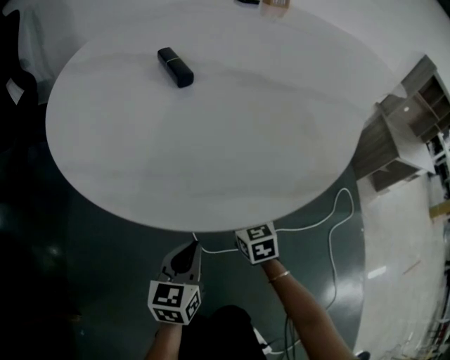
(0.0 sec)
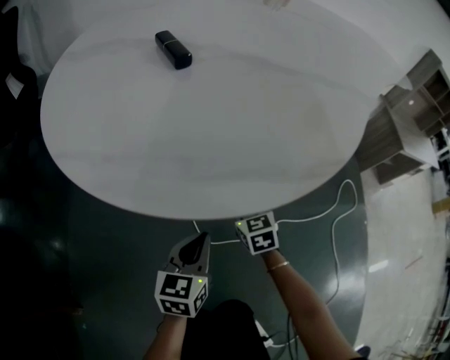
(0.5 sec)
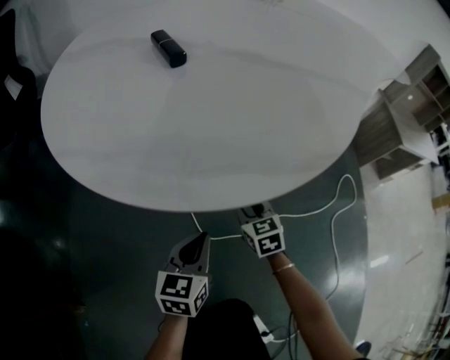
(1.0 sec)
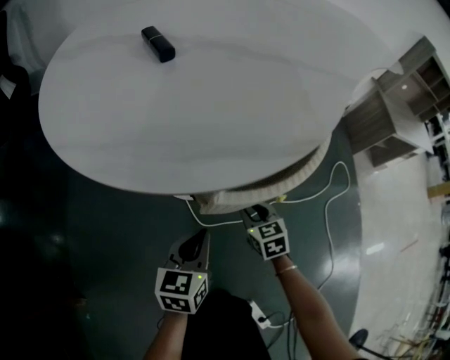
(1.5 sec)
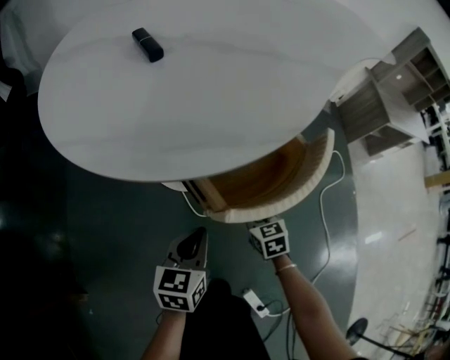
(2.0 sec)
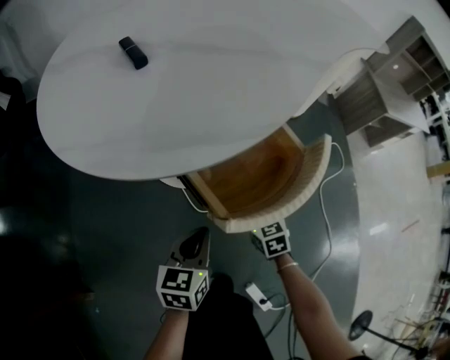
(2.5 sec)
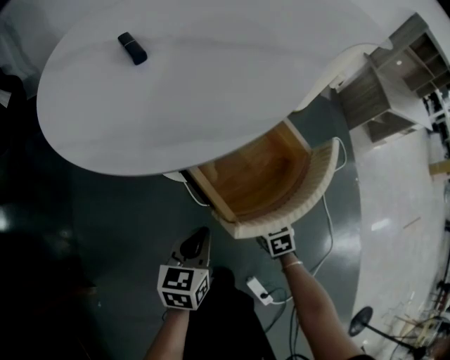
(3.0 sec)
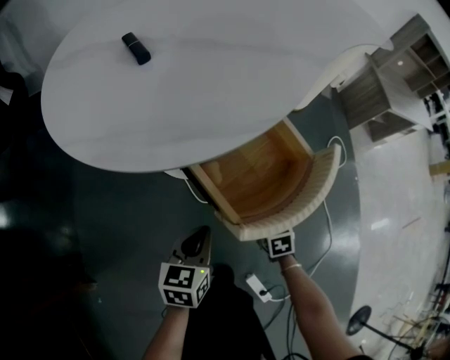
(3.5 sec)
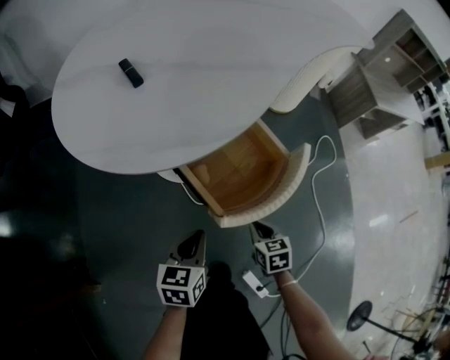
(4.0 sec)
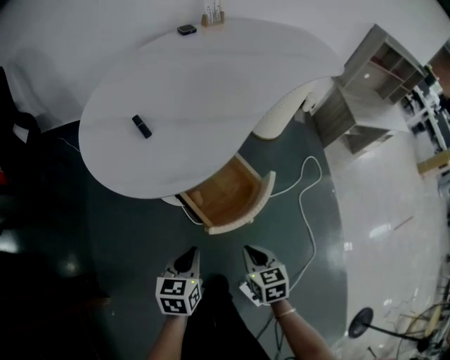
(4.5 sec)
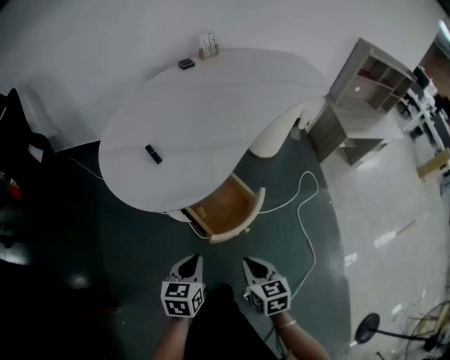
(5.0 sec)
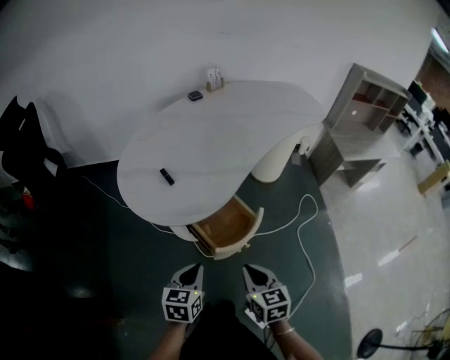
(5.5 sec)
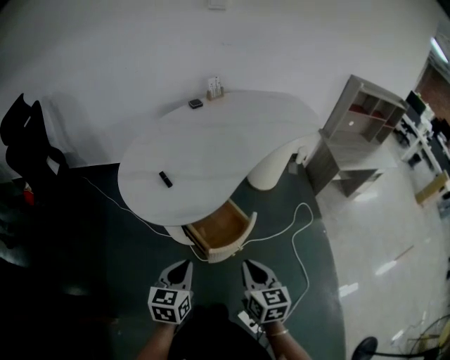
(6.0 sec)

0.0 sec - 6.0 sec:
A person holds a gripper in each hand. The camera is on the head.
0.0 sec - 2.0 sec: The right gripper shifts about 15 cm backward and to the right; the left gripper shifts approximately 5 cm backward.
2.0 sec - 4.0 sec: The right gripper travels backward, upward and to the right by roughly 15 cm, and closes. Meanwhile the left gripper shifts approximately 5 cm backward and upward.
4.0 sec - 6.0 sec: Both grippers travel together upward, about 35 cm. The right gripper swivels some 30 degrees.

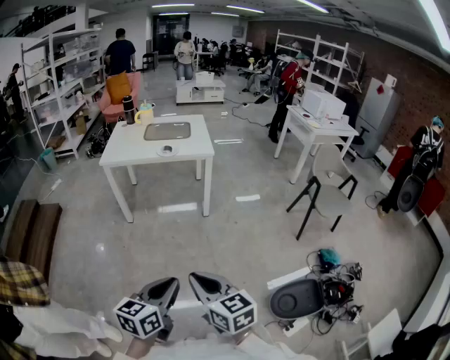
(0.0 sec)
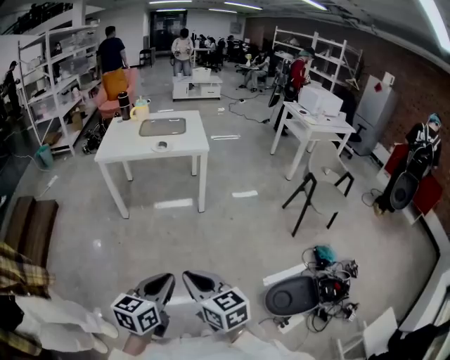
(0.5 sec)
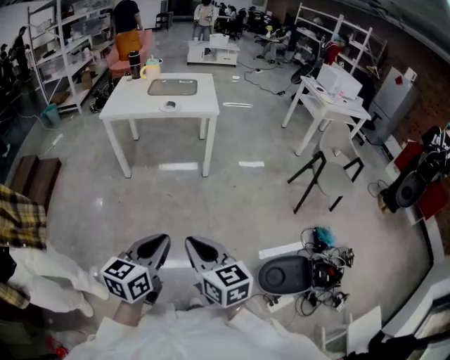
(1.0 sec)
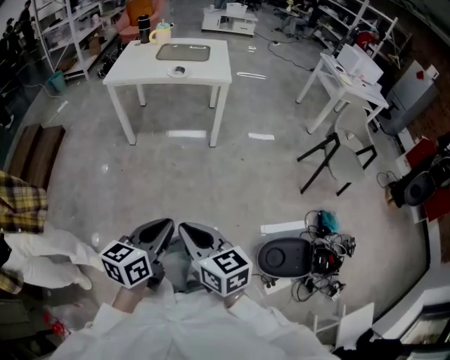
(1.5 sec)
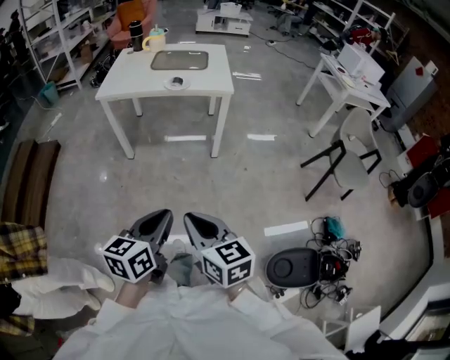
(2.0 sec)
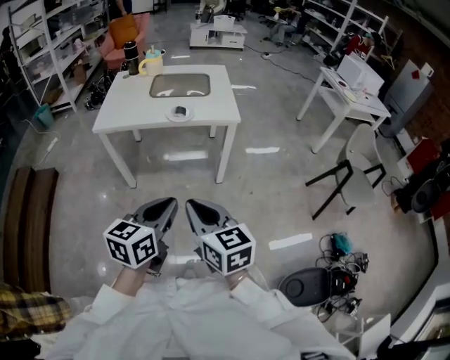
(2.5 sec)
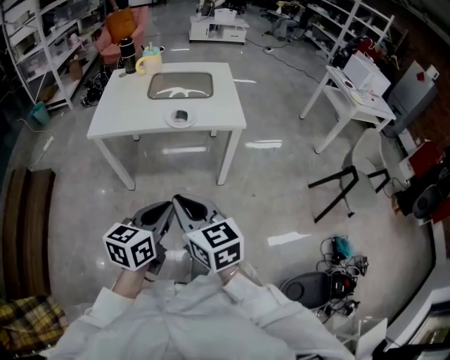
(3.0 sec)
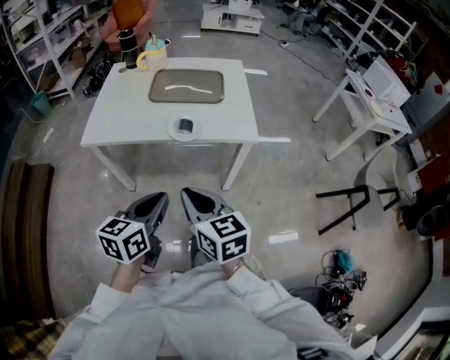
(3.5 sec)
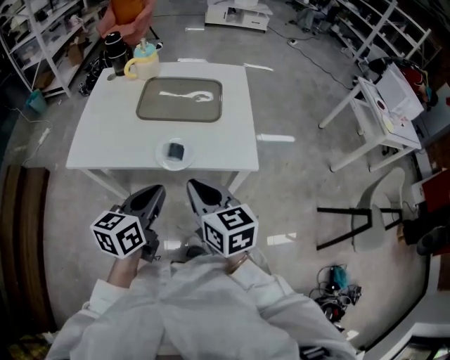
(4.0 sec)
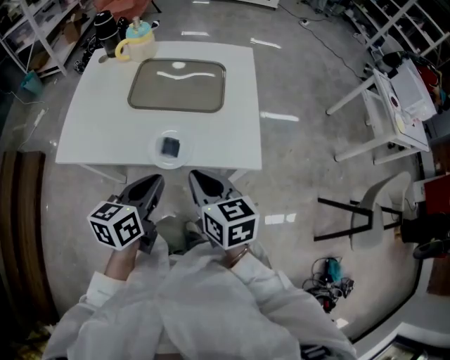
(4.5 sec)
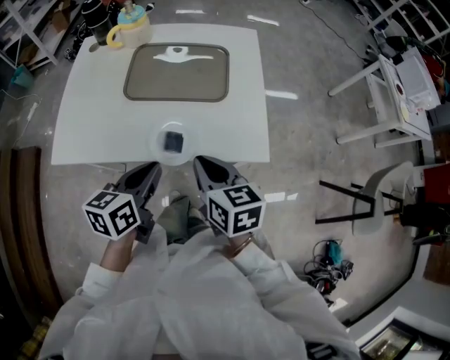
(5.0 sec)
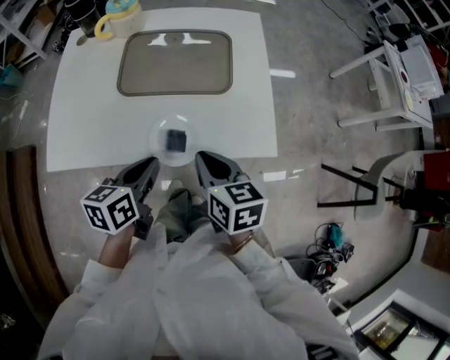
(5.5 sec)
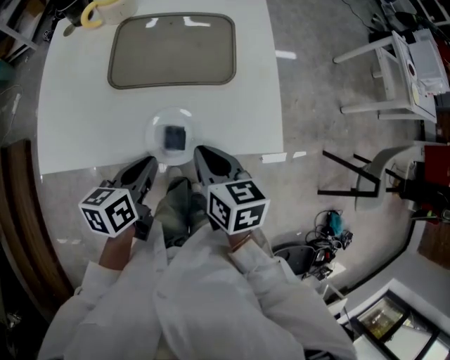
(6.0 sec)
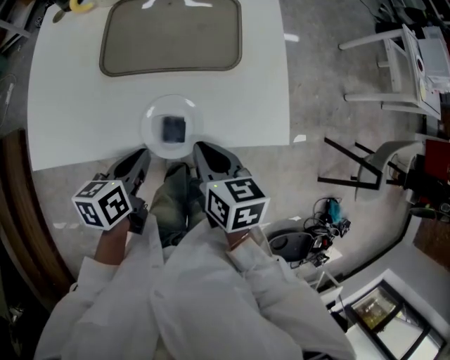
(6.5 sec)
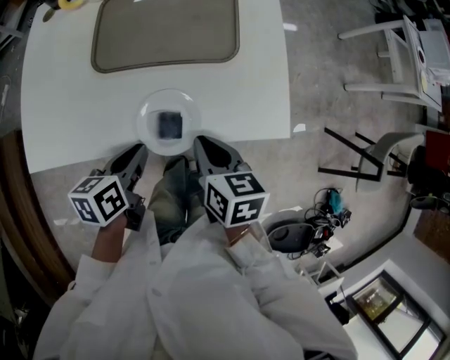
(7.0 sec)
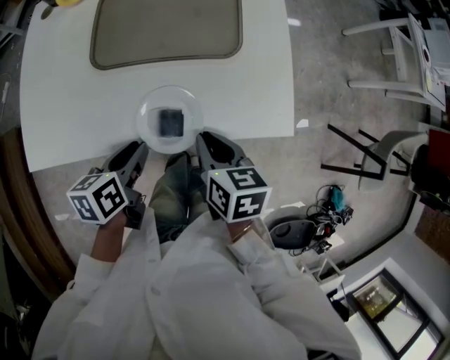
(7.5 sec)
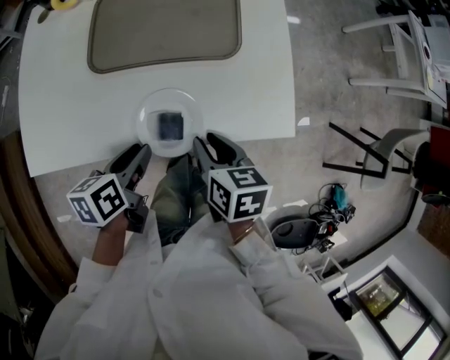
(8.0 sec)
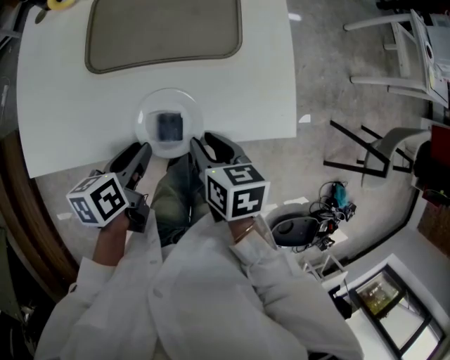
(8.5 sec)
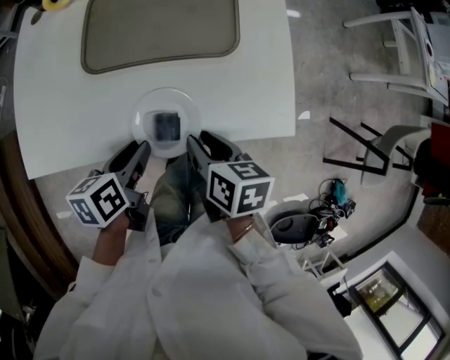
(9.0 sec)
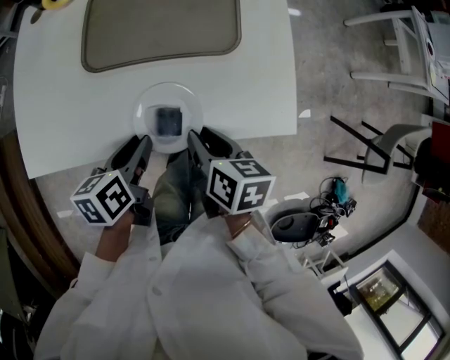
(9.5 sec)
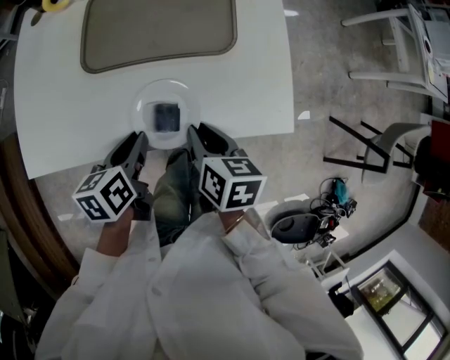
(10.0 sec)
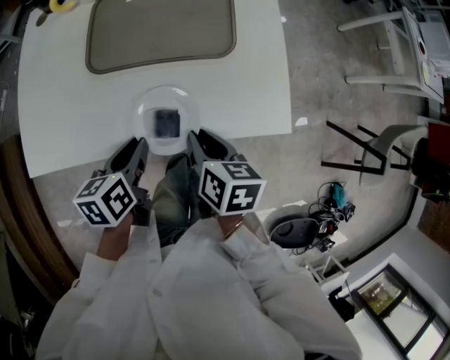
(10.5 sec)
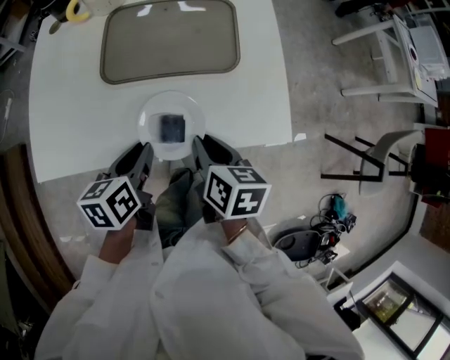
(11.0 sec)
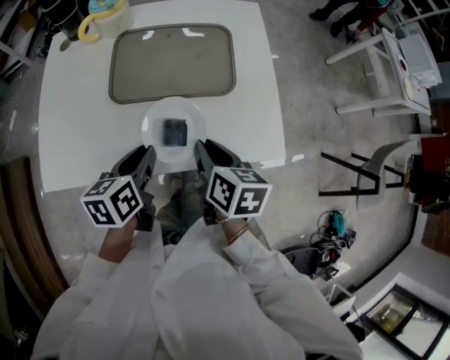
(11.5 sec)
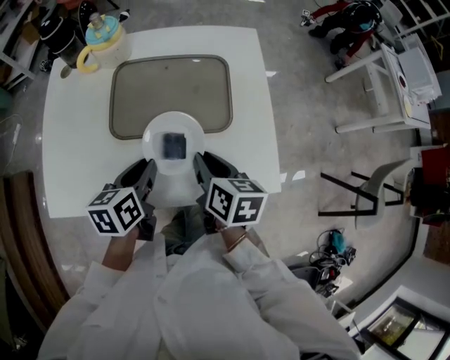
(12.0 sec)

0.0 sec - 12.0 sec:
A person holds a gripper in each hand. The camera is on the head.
0.0 sec - 2.0 sec: The grippers both shift forward by roughly 15 cm.
2.0 sec - 4.0 sec: Both grippers are carried forward, approximately 60 cm.
4.0 sec - 6.0 sec: Both grippers travel together forward and downward, about 20 cm. The left gripper changes its angle by about 20 degrees; the right gripper turns by some 20 degrees.
6.0 sec - 8.0 sec: Both grippers move downward, some 5 cm. The left gripper opens its fingers.
8.0 sec - 10.0 sec: The grippers make only small movements.
10.0 sec - 12.0 sec: The two grippers go some 10 cm forward and upward.

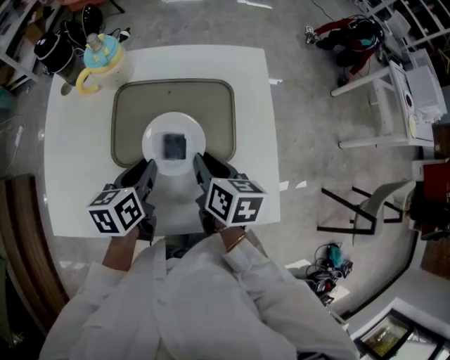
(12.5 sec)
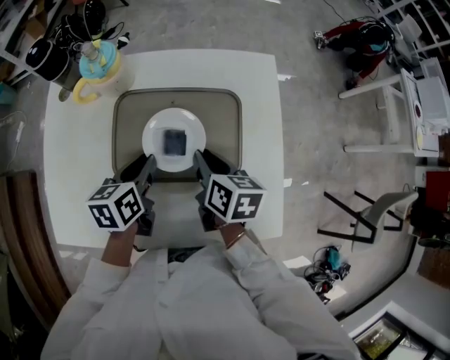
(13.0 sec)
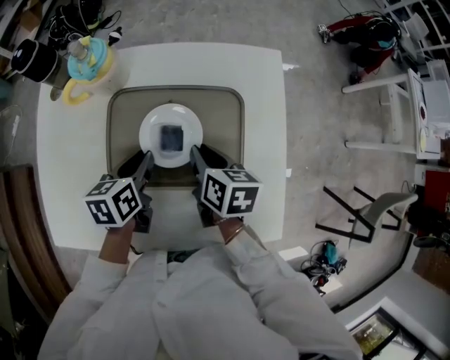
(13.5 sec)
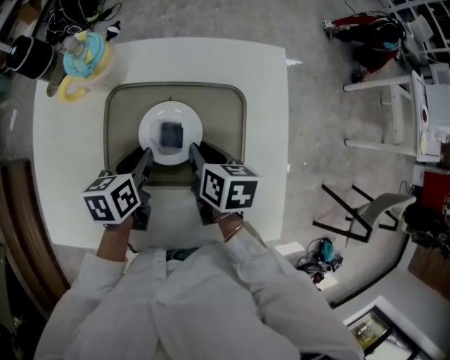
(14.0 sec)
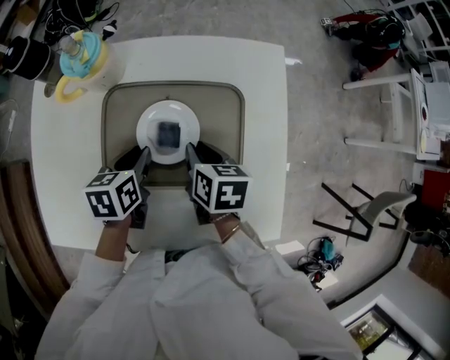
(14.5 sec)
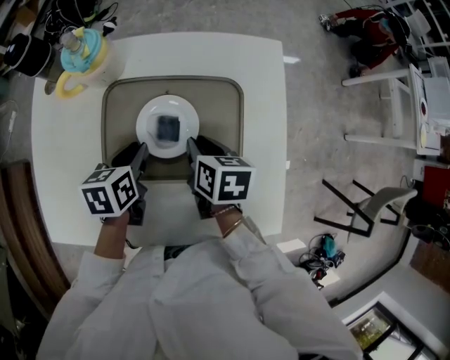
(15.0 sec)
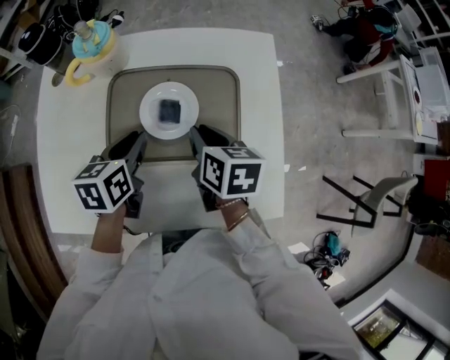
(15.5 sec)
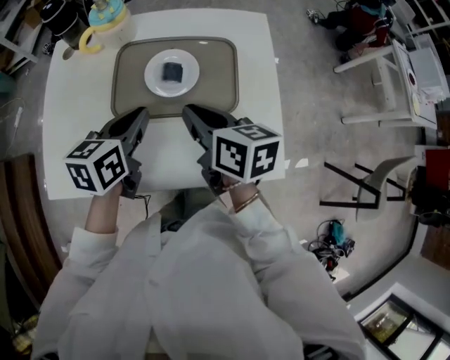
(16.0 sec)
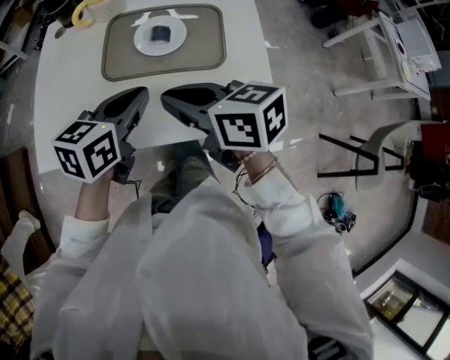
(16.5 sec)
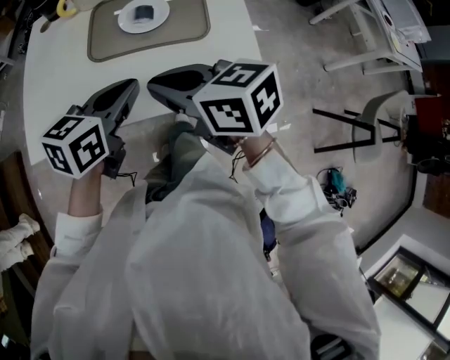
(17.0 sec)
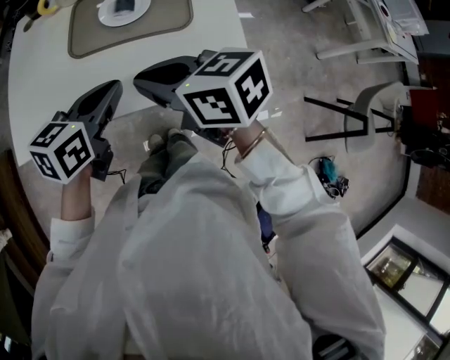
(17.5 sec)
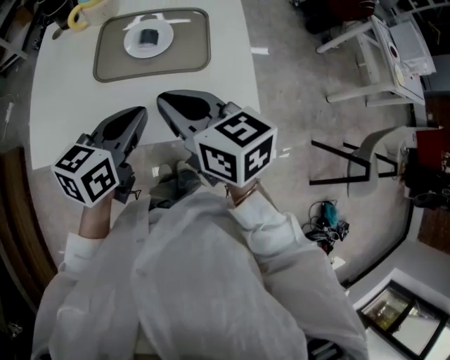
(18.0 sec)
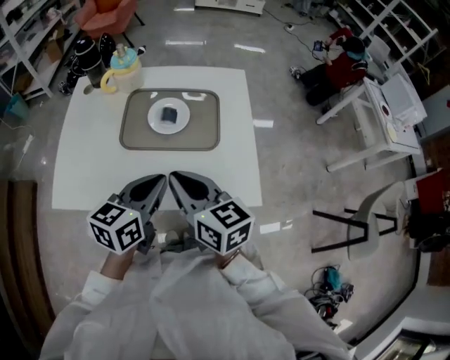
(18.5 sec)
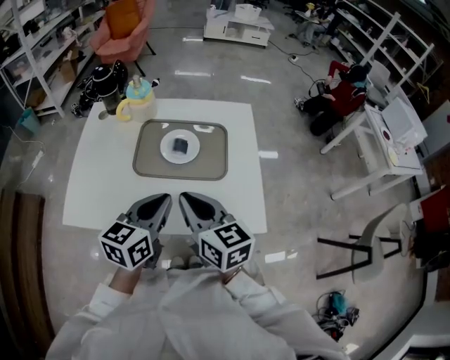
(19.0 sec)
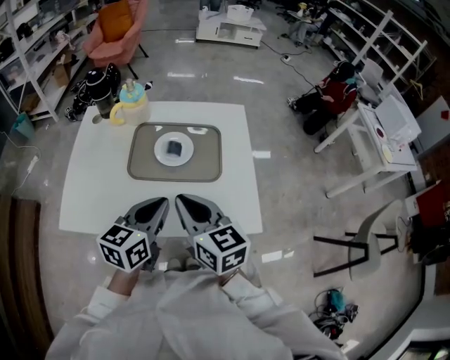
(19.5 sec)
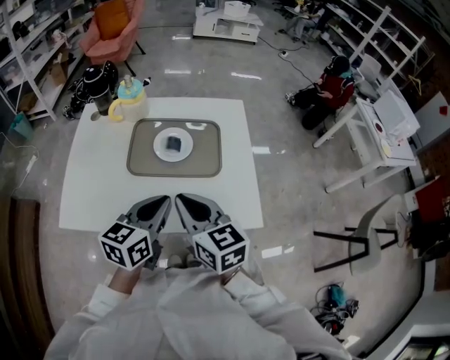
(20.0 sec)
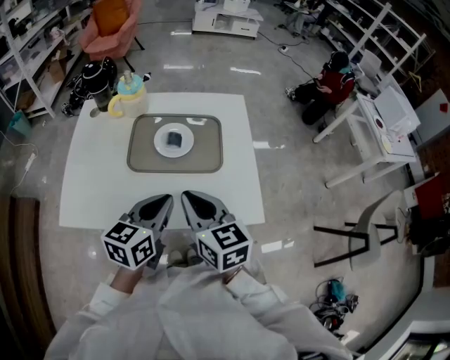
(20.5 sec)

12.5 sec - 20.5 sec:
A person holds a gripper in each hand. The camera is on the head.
12.5 sec - 14.5 sec: The grippers both shift forward and downward by roughly 10 cm.
14.5 sec - 16.5 sec: Both grippers travel together backward and upward, about 25 cm. The left gripper turns by approximately 30 degrees. The right gripper turns by some 40 degrees.
16.5 sec - 18.5 sec: The left gripper moves backward, about 5 cm. The right gripper moves about 5 cm, and swivels about 20 degrees.
18.5 sec - 20.5 sec: There are only small adjustments of the grippers.

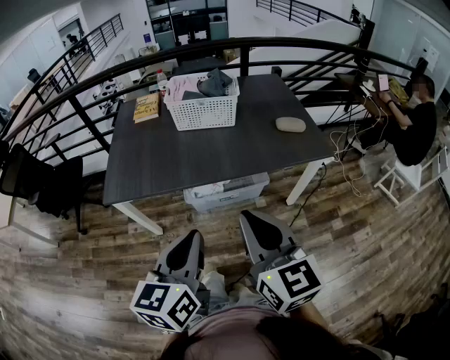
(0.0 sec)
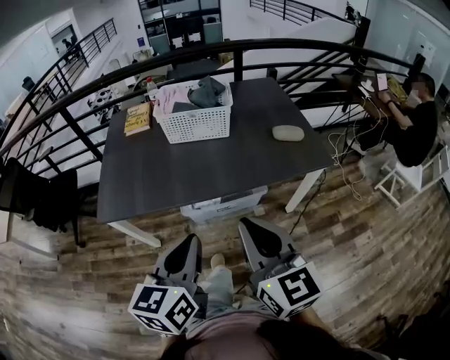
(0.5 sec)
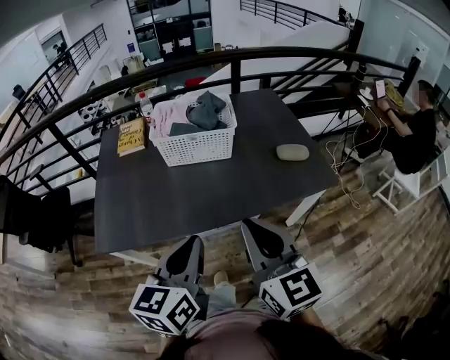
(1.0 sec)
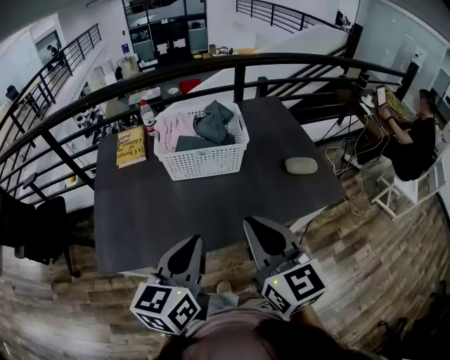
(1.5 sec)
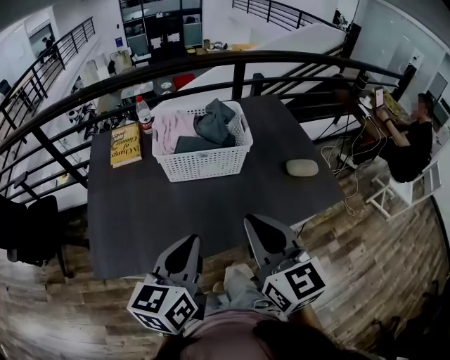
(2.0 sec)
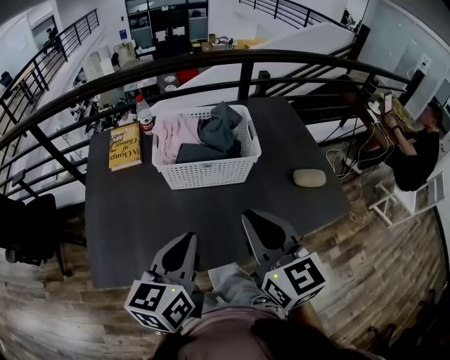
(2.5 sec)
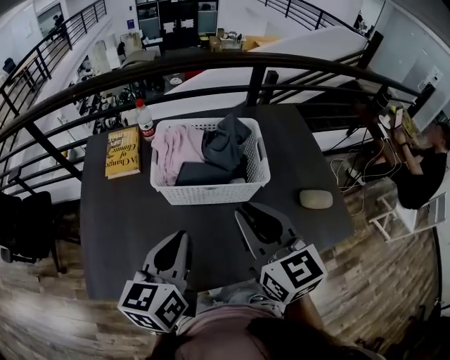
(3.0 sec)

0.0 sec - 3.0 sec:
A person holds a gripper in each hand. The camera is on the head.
0.0 sec - 1.5 sec: The grippers both shift forward by about 25 cm.
1.5 sec - 3.0 sec: The two grippers go about 20 cm forward.
